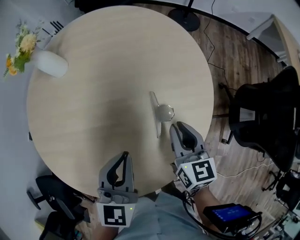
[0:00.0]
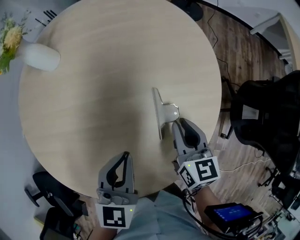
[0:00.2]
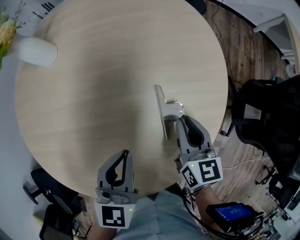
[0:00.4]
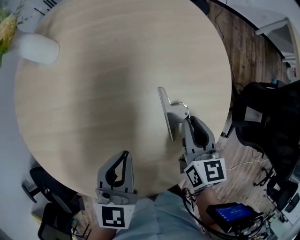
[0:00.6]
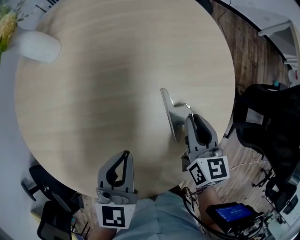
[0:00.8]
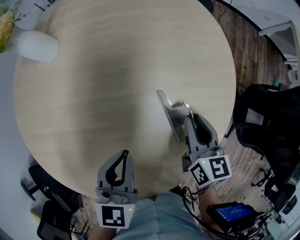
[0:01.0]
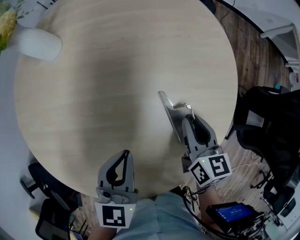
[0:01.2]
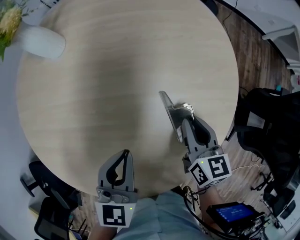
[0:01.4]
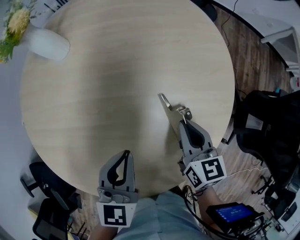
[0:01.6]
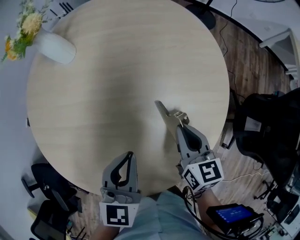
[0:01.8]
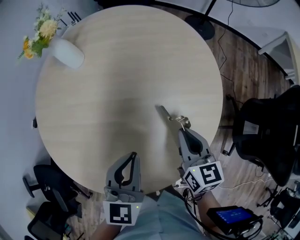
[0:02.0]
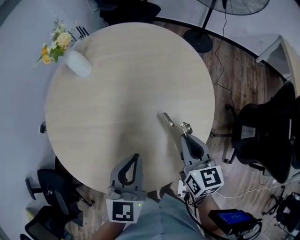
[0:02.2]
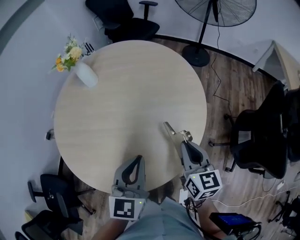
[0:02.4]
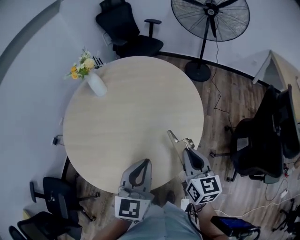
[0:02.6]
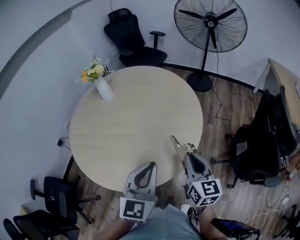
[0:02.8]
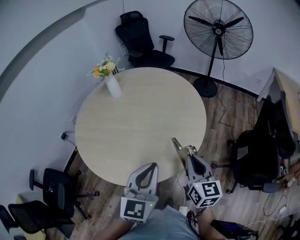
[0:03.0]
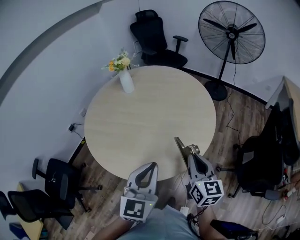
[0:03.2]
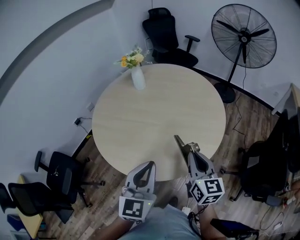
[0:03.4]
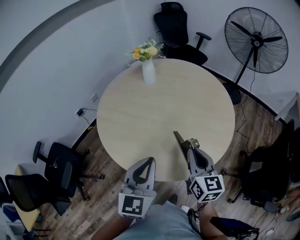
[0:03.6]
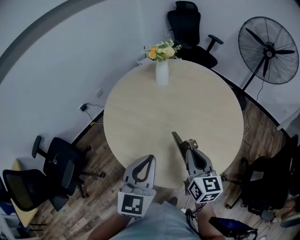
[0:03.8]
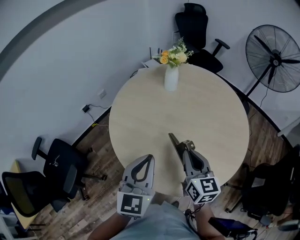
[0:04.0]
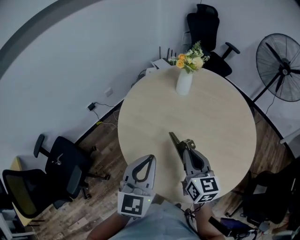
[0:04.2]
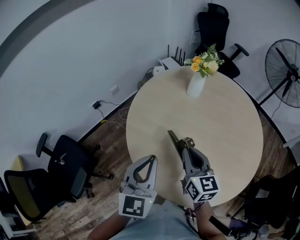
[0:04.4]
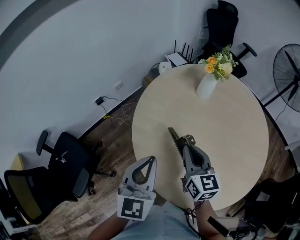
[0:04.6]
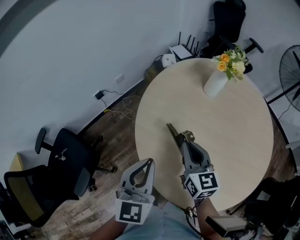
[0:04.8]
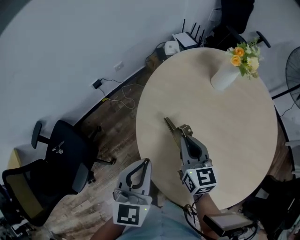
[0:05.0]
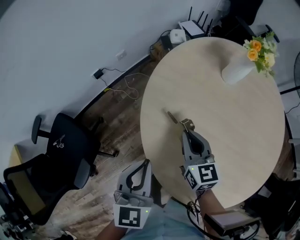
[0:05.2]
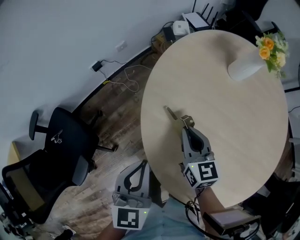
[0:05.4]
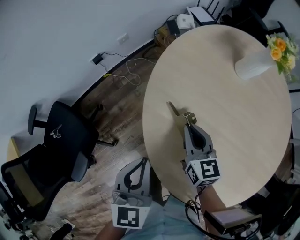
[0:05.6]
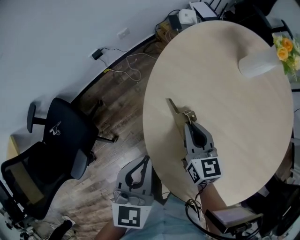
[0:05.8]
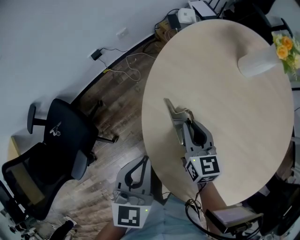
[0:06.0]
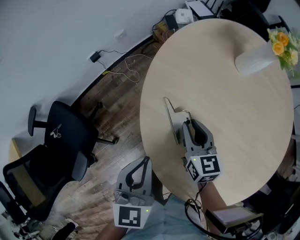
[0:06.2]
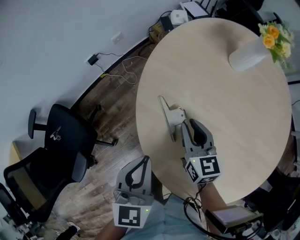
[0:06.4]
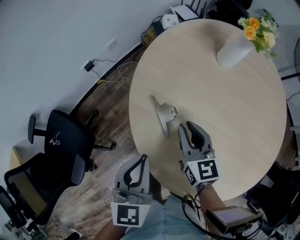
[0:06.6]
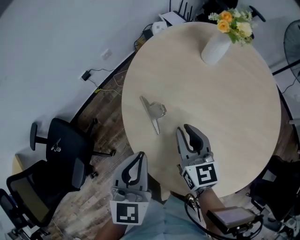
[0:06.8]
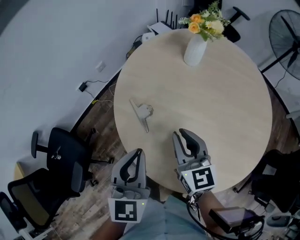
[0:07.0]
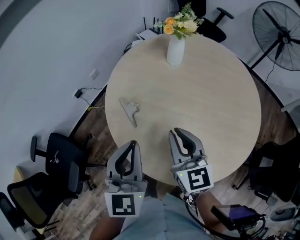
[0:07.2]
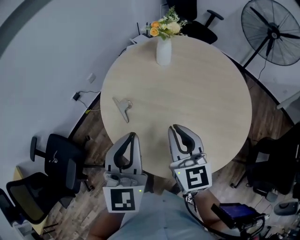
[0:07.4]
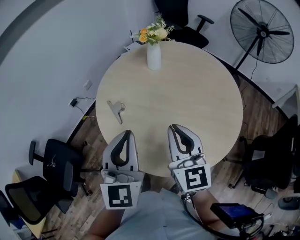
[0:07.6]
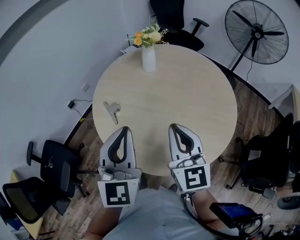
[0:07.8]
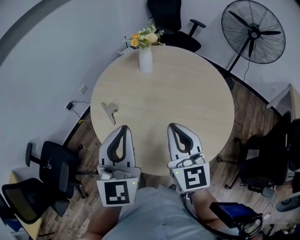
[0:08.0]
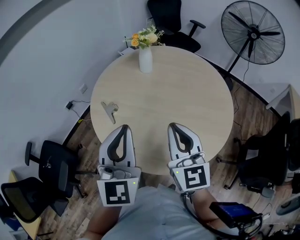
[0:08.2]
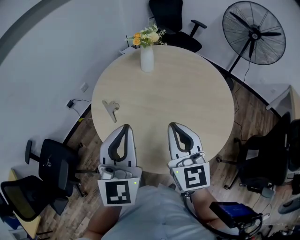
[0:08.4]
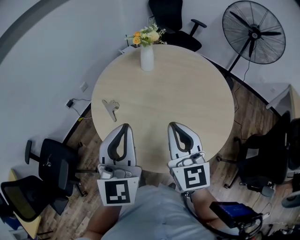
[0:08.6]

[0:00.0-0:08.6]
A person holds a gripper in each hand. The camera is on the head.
0:00.0 to 0:01.4: The right gripper travels downward and forward by roughly 10 cm. The left gripper shifts approximately 10 cm downward.
0:01.4 to 0:02.8: The left gripper heads upward, backward and to the right, covering approximately 40 cm, and turns by some 30 degrees. Meanwhile the right gripper heads backward and upward, covering about 35 cm, and changes its angle by approximately 20 degrees.
0:02.8 to 0:04.4: The two grippers travel together, to the left, some 50 cm. The left gripper swivels approximately 20 degrees. The right gripper rotates approximately 30 degrees.
0:04.4 to 0:05.8: The left gripper shifts roughly 25 cm downward, to the left and forward, and swivels roughly 30 degrees. Meanwhile the right gripper travels downward, forward and to the left by roughly 30 cm.
0:05.8 to 0:07.2: The left gripper shifts approximately 25 cm to the right, upward and backward, and changes its angle by approximately 20 degrees; the right gripper shifts some 30 cm backward, upward and to the right.
0:07.2 to 0:08.6: The grippers both shift backward, upward and to the right by approximately 20 cm.

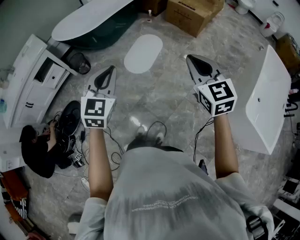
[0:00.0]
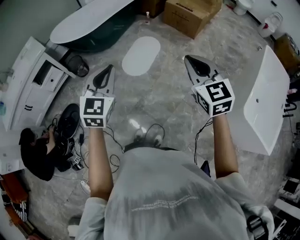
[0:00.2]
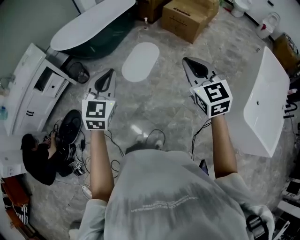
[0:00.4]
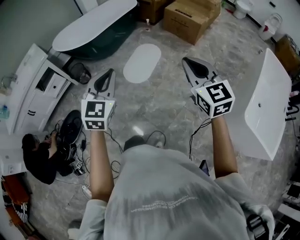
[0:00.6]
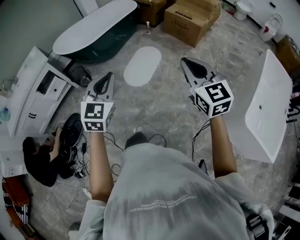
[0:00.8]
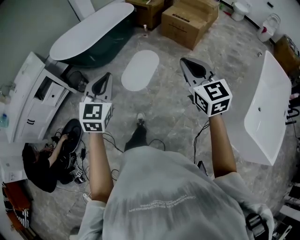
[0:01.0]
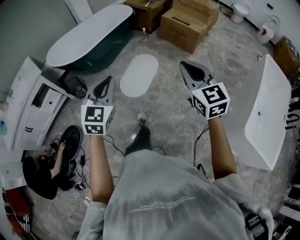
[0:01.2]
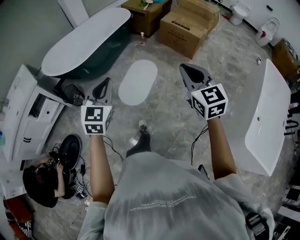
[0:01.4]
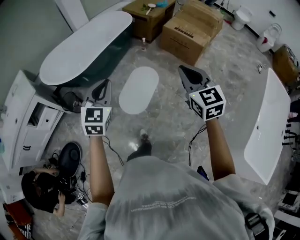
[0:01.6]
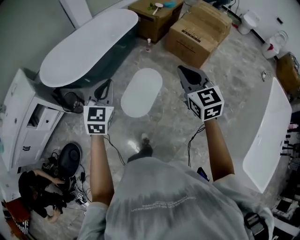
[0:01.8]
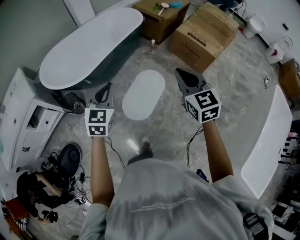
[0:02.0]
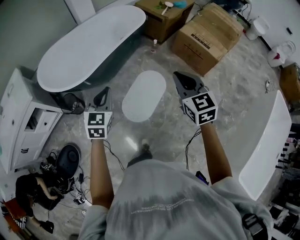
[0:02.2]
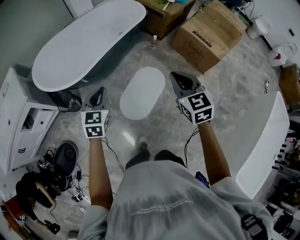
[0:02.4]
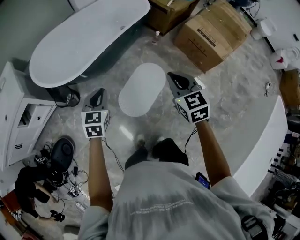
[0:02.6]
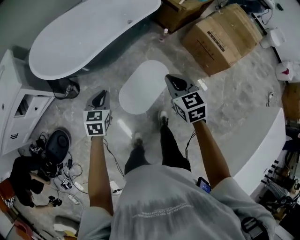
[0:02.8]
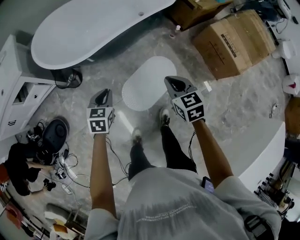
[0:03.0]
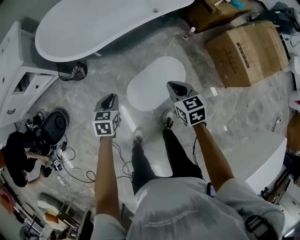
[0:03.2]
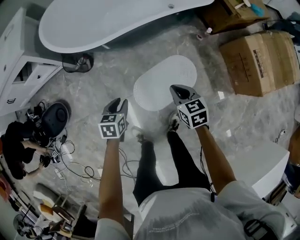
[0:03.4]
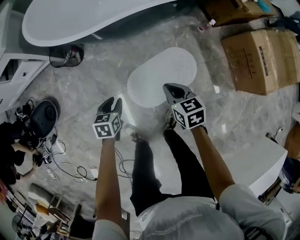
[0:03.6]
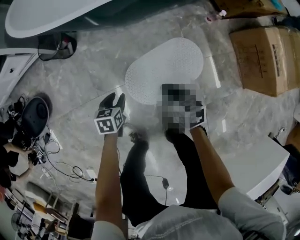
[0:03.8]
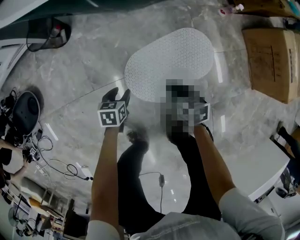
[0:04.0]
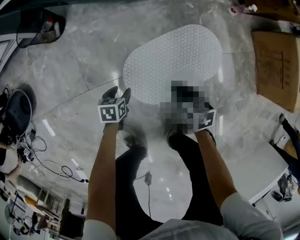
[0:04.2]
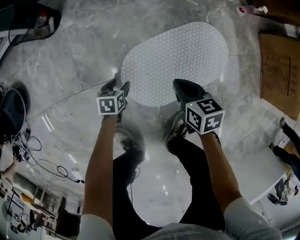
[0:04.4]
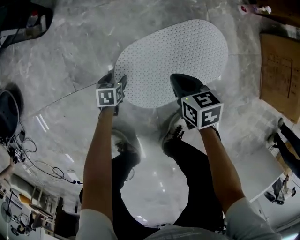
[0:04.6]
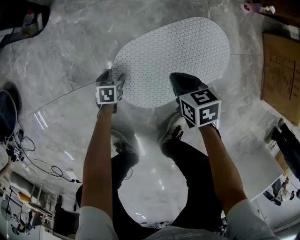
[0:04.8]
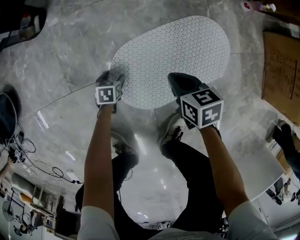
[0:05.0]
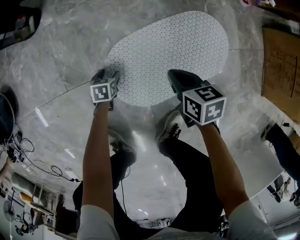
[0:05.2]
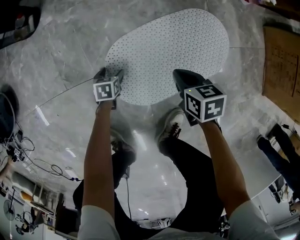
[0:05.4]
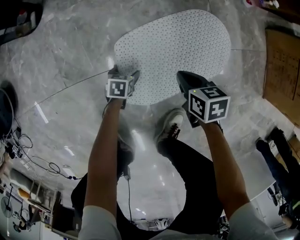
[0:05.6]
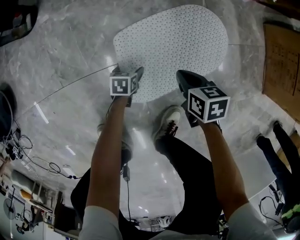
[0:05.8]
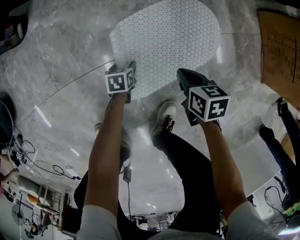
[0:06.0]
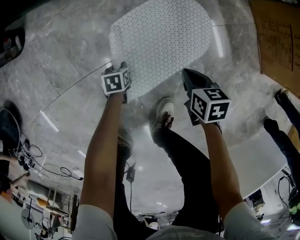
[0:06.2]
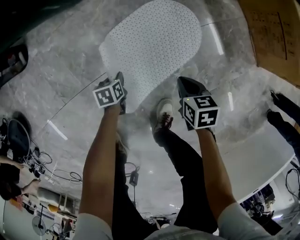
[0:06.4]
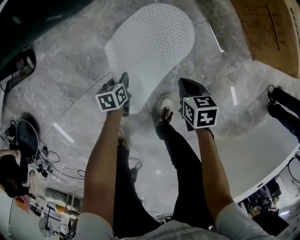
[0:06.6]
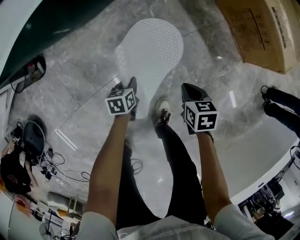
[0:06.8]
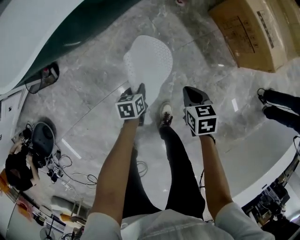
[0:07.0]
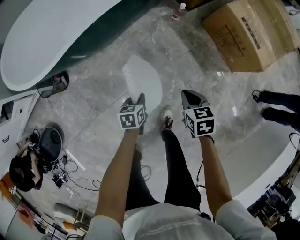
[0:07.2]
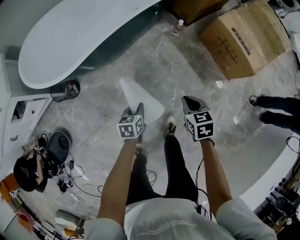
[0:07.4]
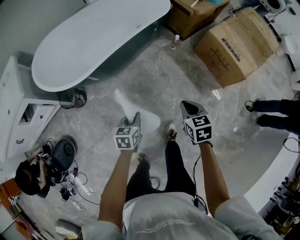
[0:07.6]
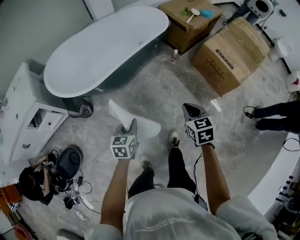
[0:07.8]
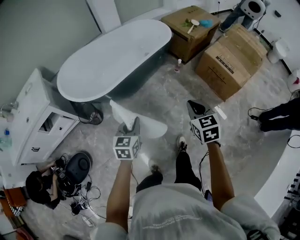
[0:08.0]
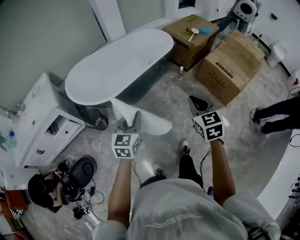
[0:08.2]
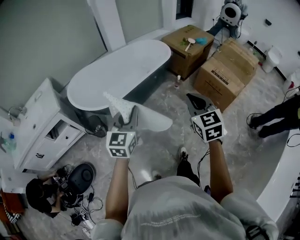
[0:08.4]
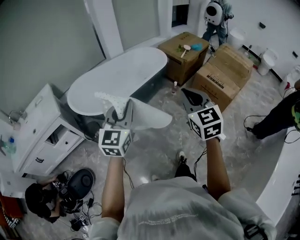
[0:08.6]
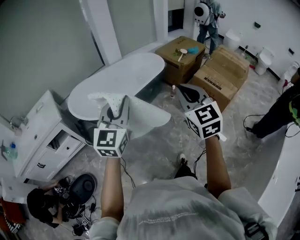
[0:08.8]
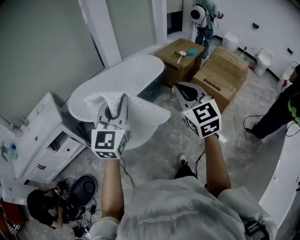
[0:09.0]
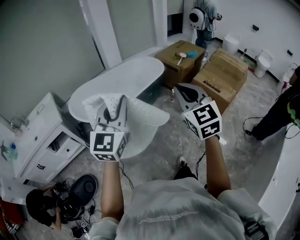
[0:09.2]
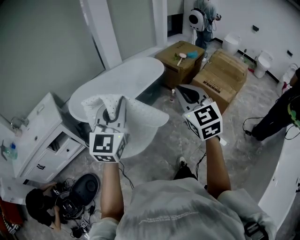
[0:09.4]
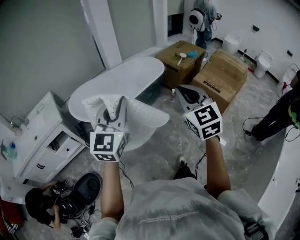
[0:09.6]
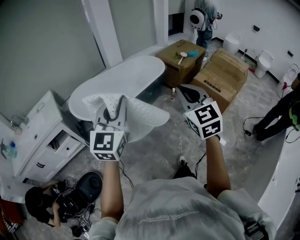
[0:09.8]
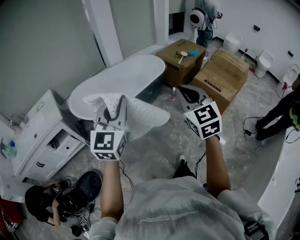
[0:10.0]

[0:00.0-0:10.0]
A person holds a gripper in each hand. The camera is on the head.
0:00.0 to 0:01.4: The grippers both shift forward by approximately 25 cm.
0:01.4 to 0:02.8: The two grippers go roughly 40 cm forward and downward. The right gripper changes its angle by roughly 30 degrees, while the left gripper turns by about 40 degrees.
0:02.8 to 0:04.2: Both grippers move downward, about 60 cm. The right gripper rotates some 30 degrees. Meanwhile the left gripper swivels roughly 40 degrees, and opens.
0:04.2 to 0:05.8: The right gripper moves downward and to the right, roughly 15 cm. Meanwhile the left gripper travels downward and to the right by approximately 20 cm.
0:05.8 to 0:07.2: Both grippers move upward, some 40 cm. The right gripper changes its angle by roughly 20 degrees. The left gripper closes its fingers.
0:07.2 to 0:08.6: The grippers both shift upward by some 60 cm. The right gripper angles its fingers upward, by some 40 degrees. Meanwhile the left gripper points its fingers about 50 degrees further upward.
0:08.6 to 0:10.0: The left gripper shifts about 10 cm upward; the right gripper ends up about 5 cm from where it was.

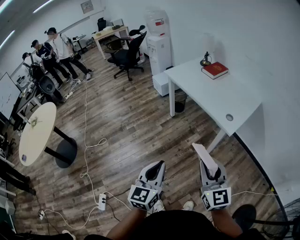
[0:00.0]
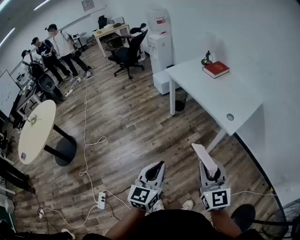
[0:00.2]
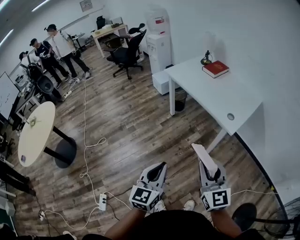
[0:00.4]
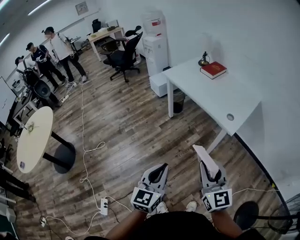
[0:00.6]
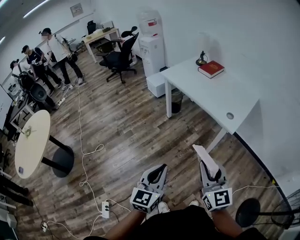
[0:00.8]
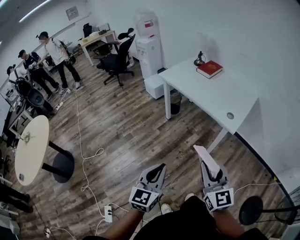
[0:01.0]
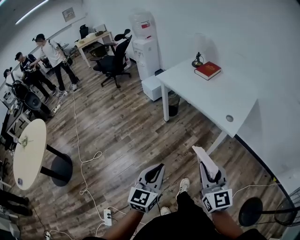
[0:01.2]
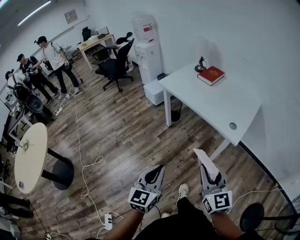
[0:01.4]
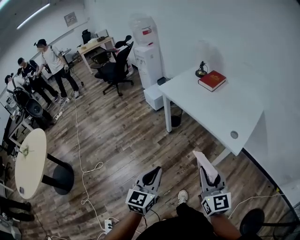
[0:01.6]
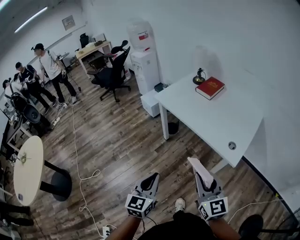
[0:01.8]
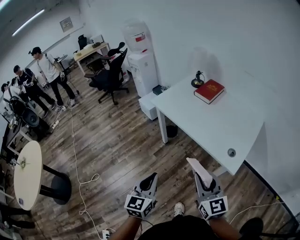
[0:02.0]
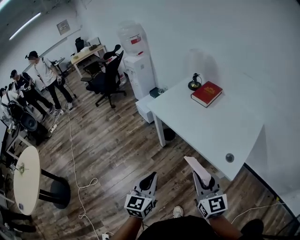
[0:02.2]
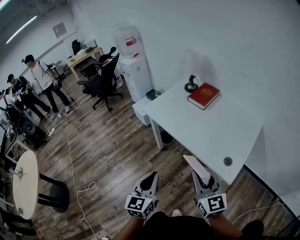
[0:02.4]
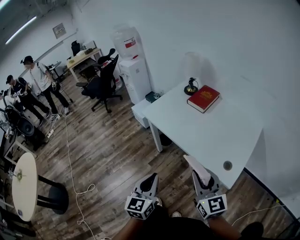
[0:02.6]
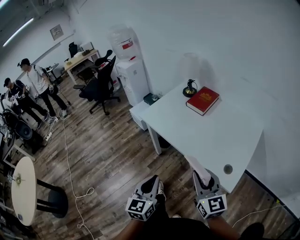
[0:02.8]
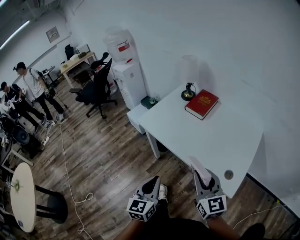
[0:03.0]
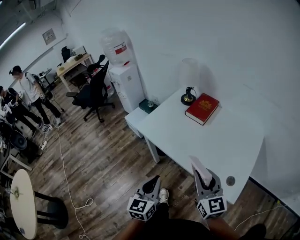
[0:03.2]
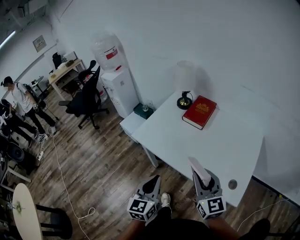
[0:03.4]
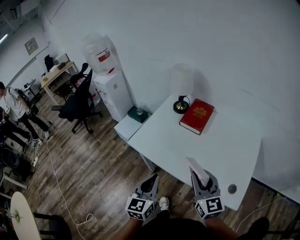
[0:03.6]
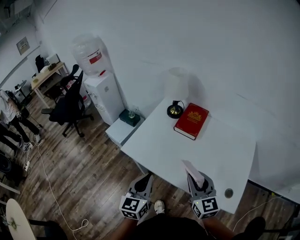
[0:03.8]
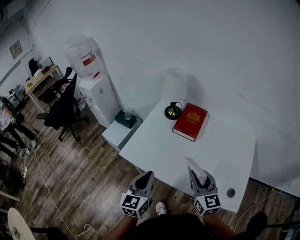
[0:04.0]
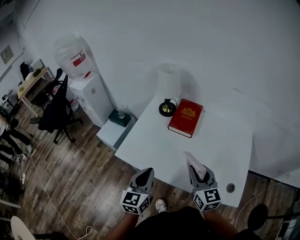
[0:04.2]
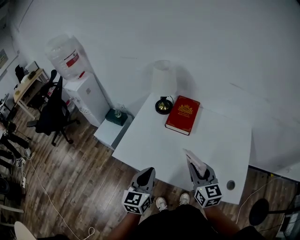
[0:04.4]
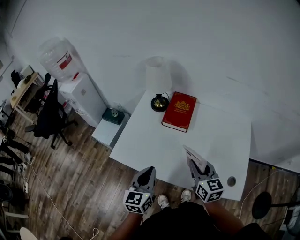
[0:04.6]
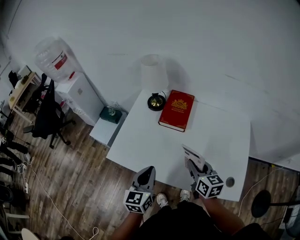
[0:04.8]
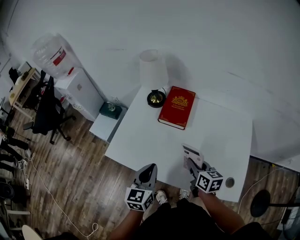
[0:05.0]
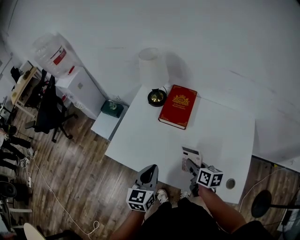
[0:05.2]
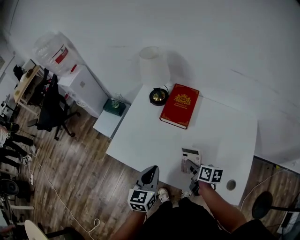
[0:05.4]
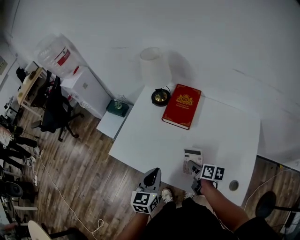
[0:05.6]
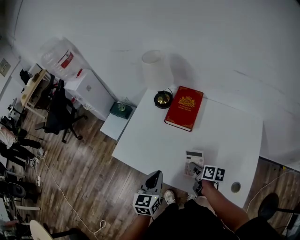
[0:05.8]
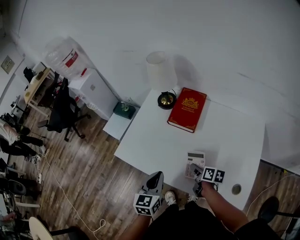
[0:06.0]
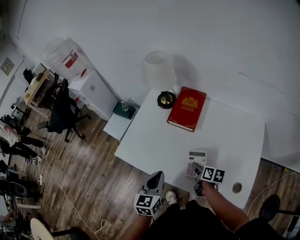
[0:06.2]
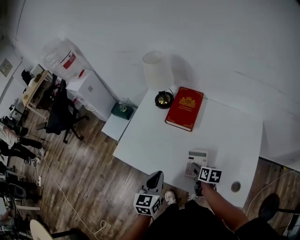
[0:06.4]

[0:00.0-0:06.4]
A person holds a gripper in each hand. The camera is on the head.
0:00.0 to 0:01.6: Both grippers travel together forward, approximately 20 cm.
0:01.6 to 0:03.2: Both grippers move forward, approximately 35 cm.
0:03.2 to 0:04.8: The left gripper travels forward by roughly 25 cm. Meanwhile the right gripper heads forward and downward, covering some 25 cm, and swivels some 30 degrees.
0:04.8 to 0:06.4: The right gripper is displaced downward by some 15 cm, and swivels approximately 30 degrees; the left gripper changes place by some 5 cm.
